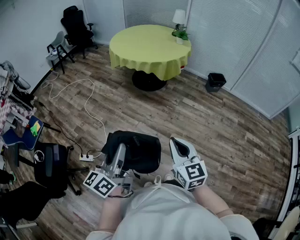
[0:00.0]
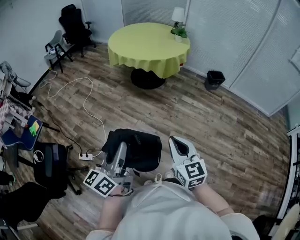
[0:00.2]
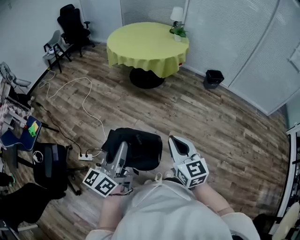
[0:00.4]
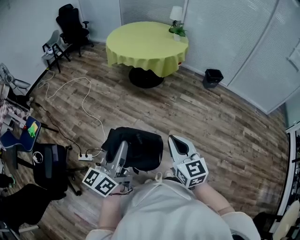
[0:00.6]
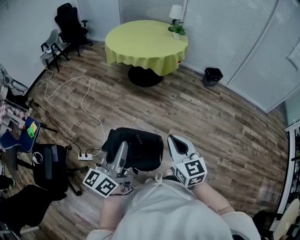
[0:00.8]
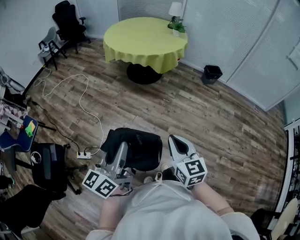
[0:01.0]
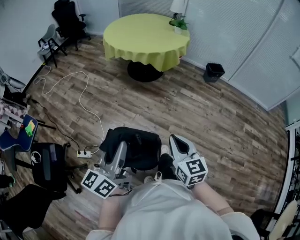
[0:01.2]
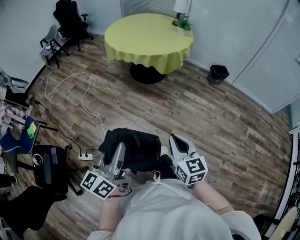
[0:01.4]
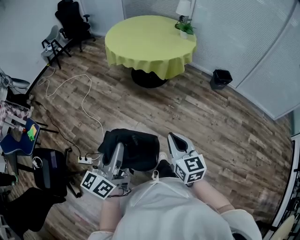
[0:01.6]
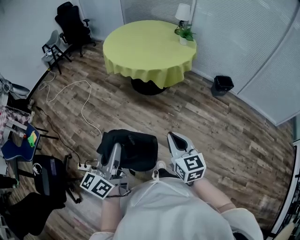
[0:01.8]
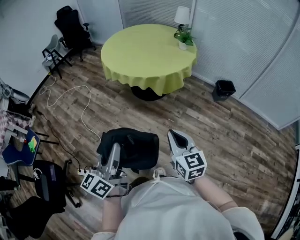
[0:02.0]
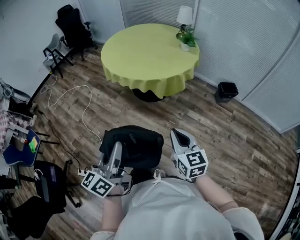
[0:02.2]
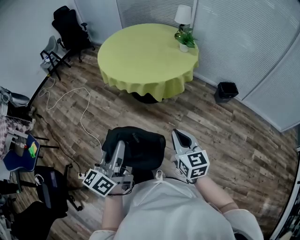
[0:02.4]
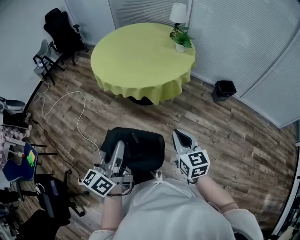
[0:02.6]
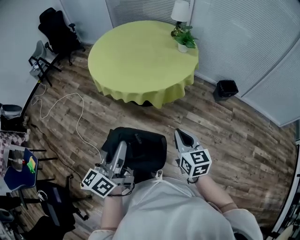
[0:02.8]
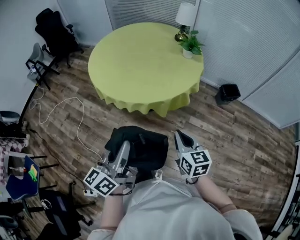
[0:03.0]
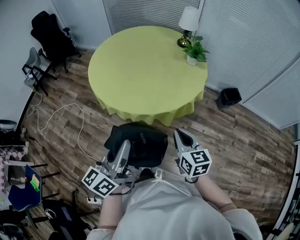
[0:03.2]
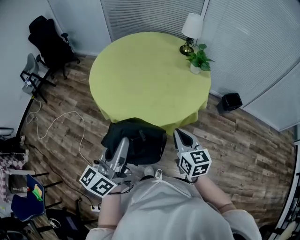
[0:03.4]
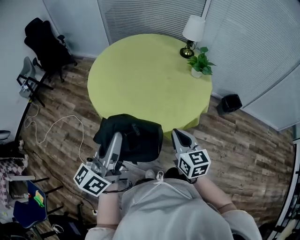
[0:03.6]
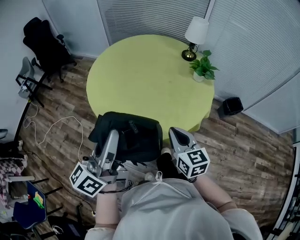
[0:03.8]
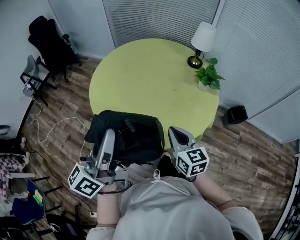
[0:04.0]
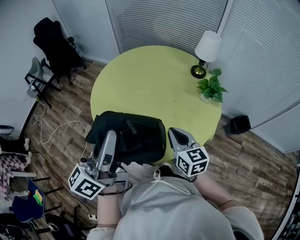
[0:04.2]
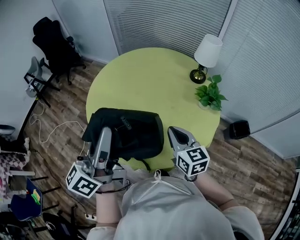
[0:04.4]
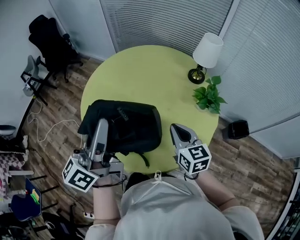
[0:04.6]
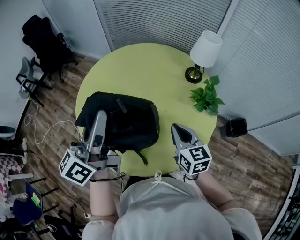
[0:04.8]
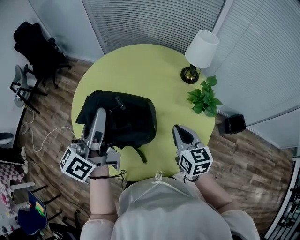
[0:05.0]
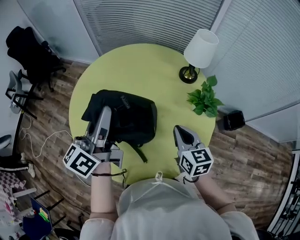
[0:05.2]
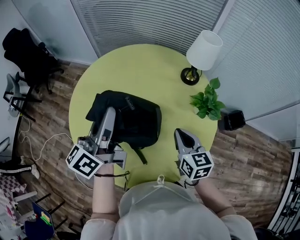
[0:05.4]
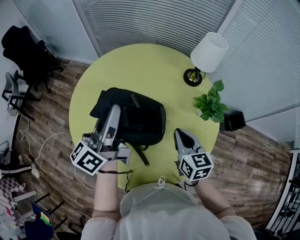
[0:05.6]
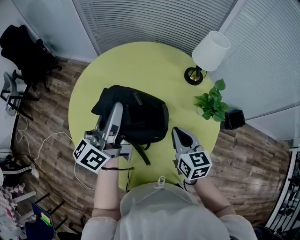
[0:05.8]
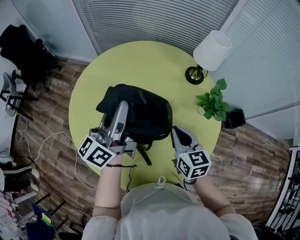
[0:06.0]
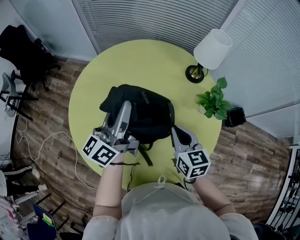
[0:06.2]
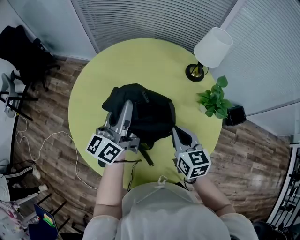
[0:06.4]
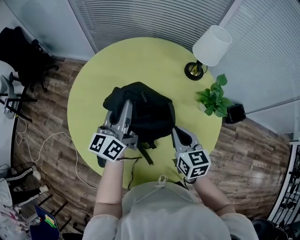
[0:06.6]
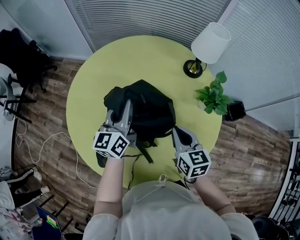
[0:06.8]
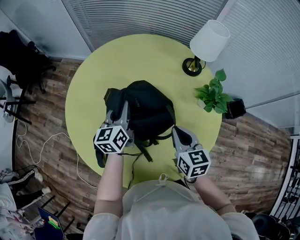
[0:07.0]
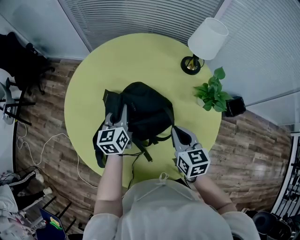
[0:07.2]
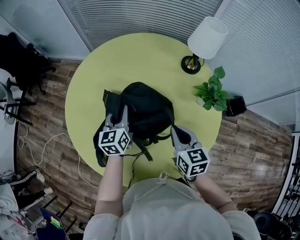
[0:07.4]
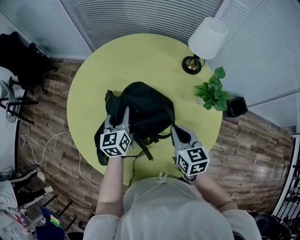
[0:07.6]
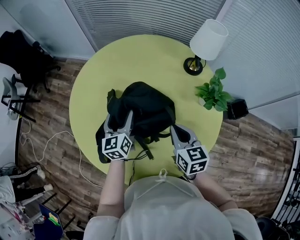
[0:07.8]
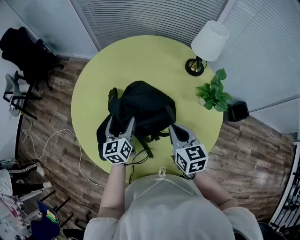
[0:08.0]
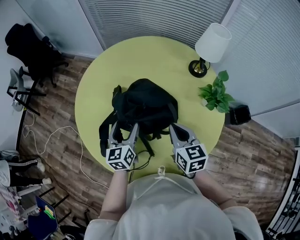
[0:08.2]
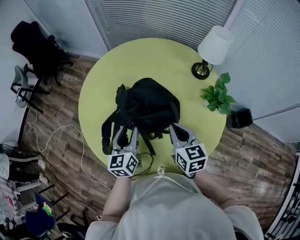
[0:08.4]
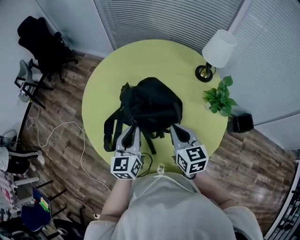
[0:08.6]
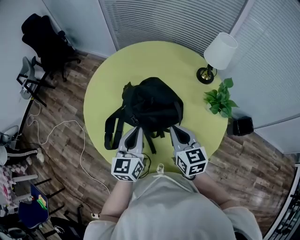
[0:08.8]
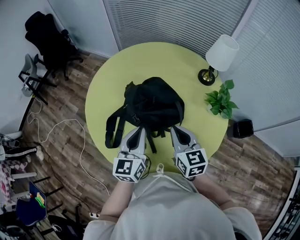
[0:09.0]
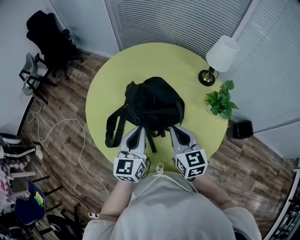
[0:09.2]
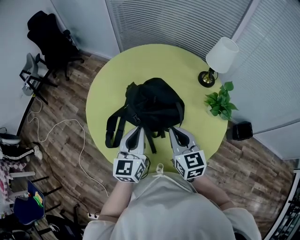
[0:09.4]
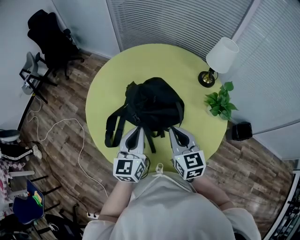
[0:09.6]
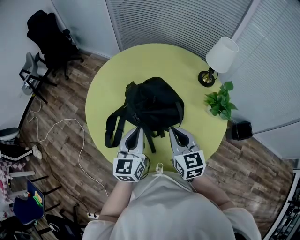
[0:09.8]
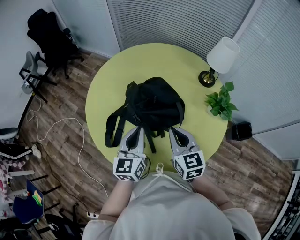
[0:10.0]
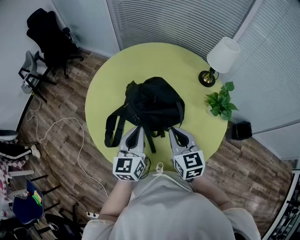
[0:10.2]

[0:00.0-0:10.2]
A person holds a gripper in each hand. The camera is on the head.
0:00.0 to 0:01.4: The left gripper is displaced forward by roughly 10 cm. The right gripper moves forward and downward, approximately 10 cm.
0:01.4 to 0:03.0: The two grippers travel together, forward, roughly 50 cm.
0:03.0 to 0:04.4: Both grippers are carried forward, about 40 cm.
0:04.4 to 0:05.8: The left gripper is displaced forward by approximately 30 cm, while the right gripper shifts about 15 cm forward.
0:05.8 to 0:07.2: The left gripper is displaced downward by roughly 20 cm, and tips its fingers downward by about 30 degrees.
0:07.2 to 0:08.8: The right gripper goes approximately 5 cm backward, while the left gripper is displaced backward and upward by roughly 20 cm, and opens, then closes again.
0:08.8 to 0:10.2: The grippers stay close to where they were, moving slightly.

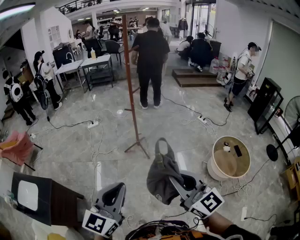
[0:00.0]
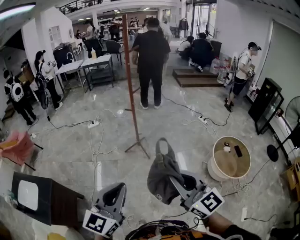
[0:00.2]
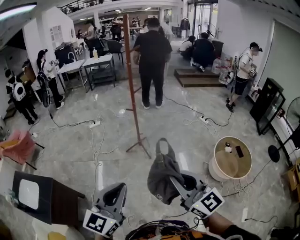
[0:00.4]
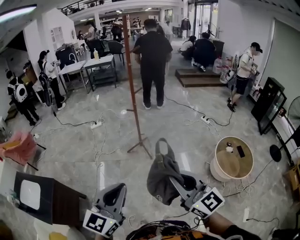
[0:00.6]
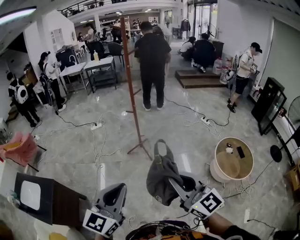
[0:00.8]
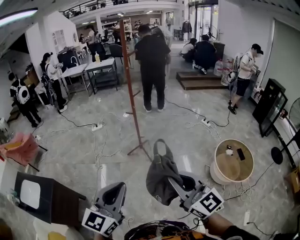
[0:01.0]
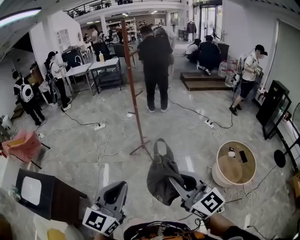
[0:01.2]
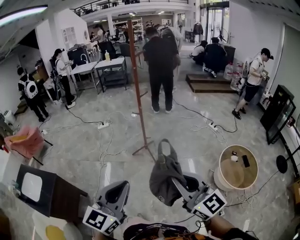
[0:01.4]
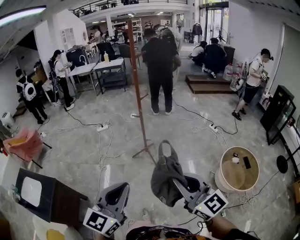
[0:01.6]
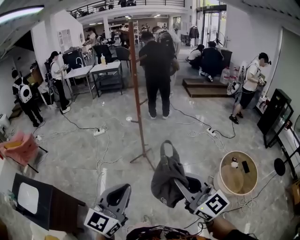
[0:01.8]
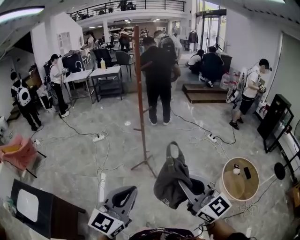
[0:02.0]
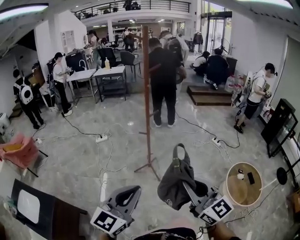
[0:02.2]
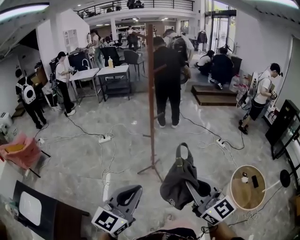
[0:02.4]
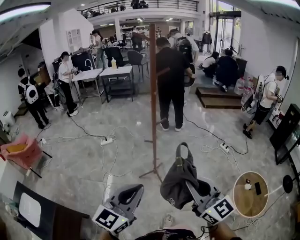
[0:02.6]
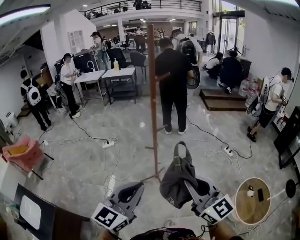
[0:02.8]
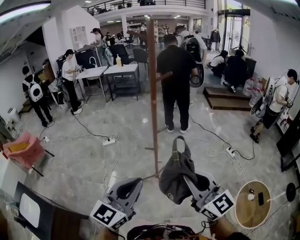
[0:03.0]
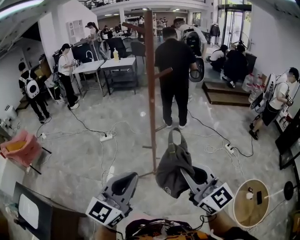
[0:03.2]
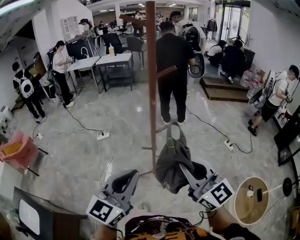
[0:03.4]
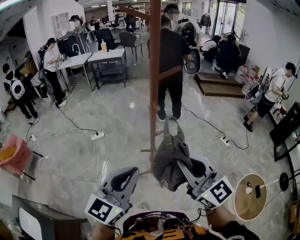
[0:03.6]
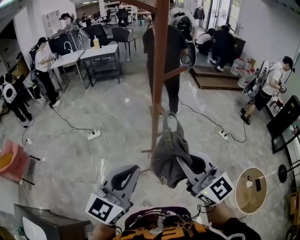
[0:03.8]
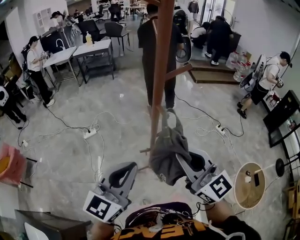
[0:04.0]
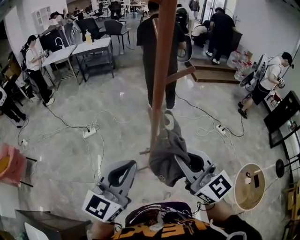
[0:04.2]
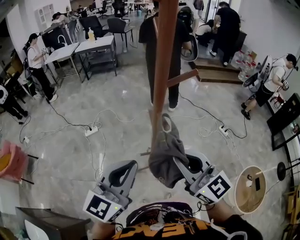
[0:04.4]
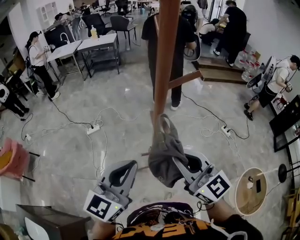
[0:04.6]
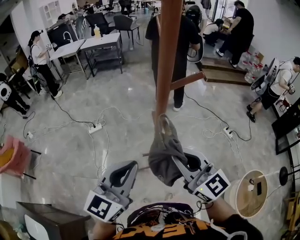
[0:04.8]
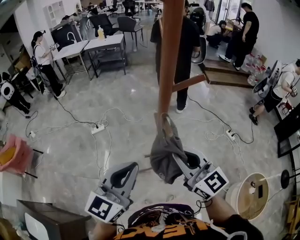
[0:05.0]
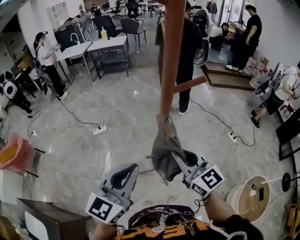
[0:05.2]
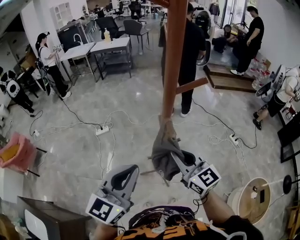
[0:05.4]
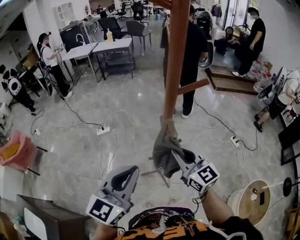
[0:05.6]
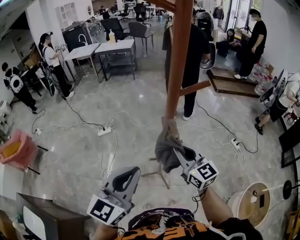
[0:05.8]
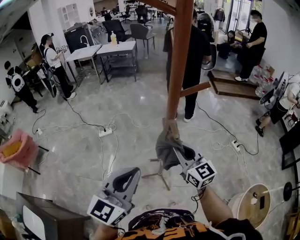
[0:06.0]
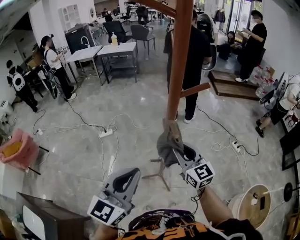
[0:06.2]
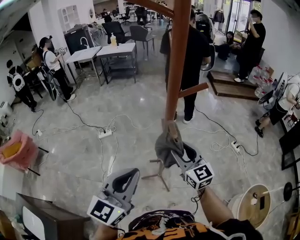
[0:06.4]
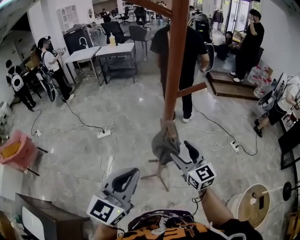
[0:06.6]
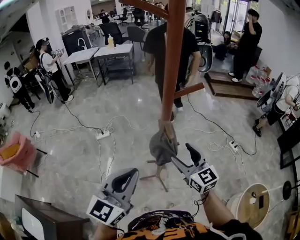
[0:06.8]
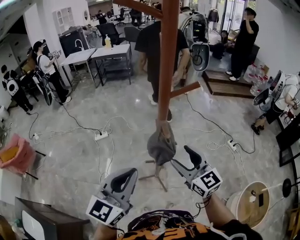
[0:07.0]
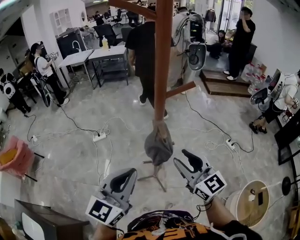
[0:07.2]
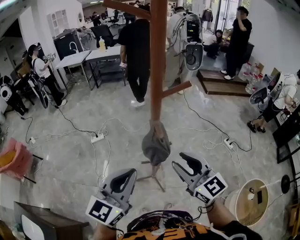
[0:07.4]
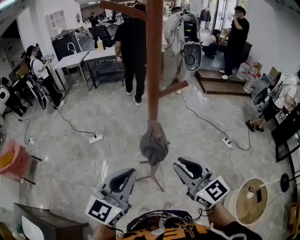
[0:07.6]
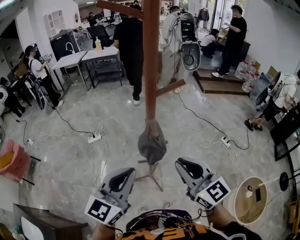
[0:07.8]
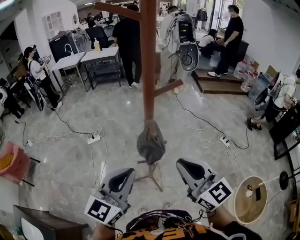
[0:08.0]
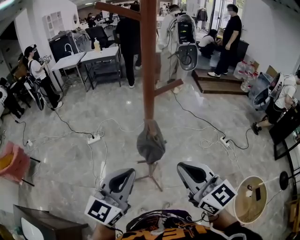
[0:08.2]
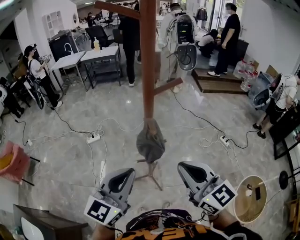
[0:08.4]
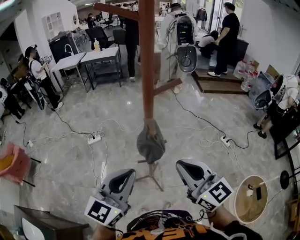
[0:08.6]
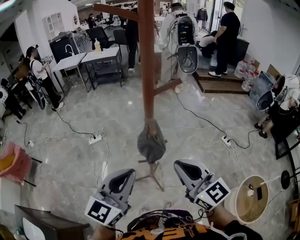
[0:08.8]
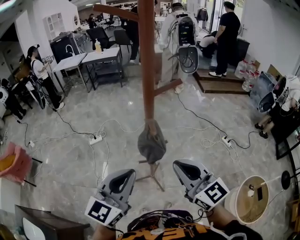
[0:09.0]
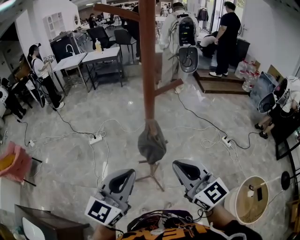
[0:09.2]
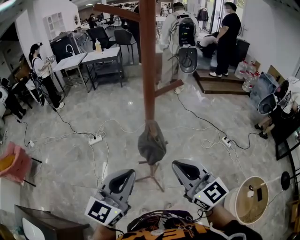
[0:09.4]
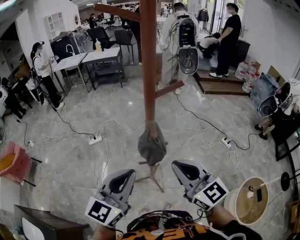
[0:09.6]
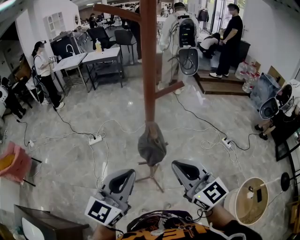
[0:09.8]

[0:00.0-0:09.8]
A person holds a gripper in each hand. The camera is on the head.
0:00.0 to 0:01.4: The grippers both shift to the right by approximately 5 cm.
0:01.4 to 0:02.8: The grippers both shift forward by some 35 cm.
0:02.8 to 0:04.2: Both grippers move forward, approximately 35 cm.
0:04.2 to 0:05.6: The right gripper travels forward and downward by approximately 15 cm.
0:05.6 to 0:07.0: The right gripper opens.
0:07.0 to 0:08.4: The right gripper travels upward and backward by some 15 cm, and closes its fingers.
0:08.4 to 0:09.8: The grippers make only small movements.

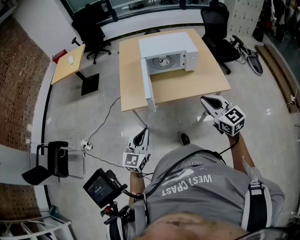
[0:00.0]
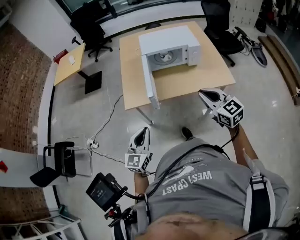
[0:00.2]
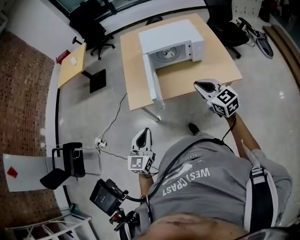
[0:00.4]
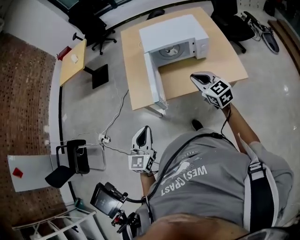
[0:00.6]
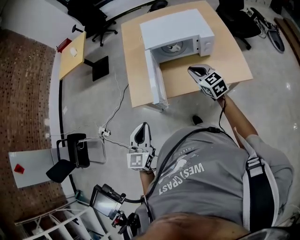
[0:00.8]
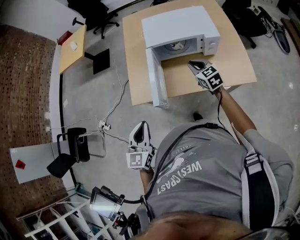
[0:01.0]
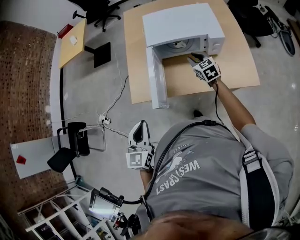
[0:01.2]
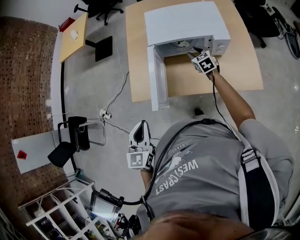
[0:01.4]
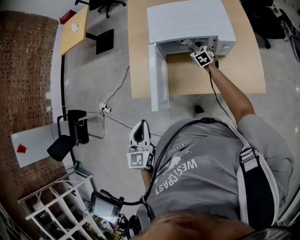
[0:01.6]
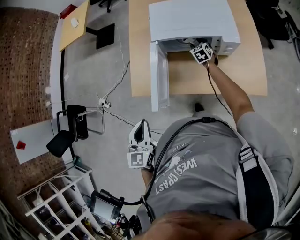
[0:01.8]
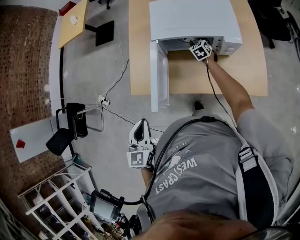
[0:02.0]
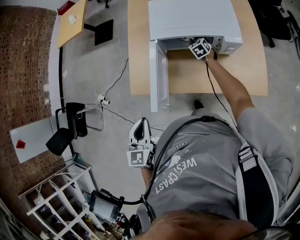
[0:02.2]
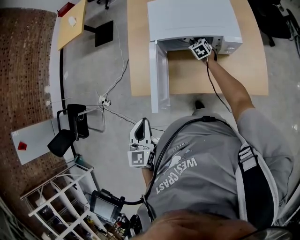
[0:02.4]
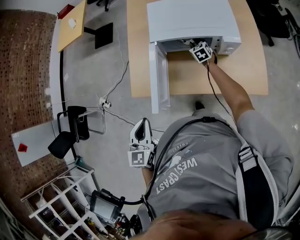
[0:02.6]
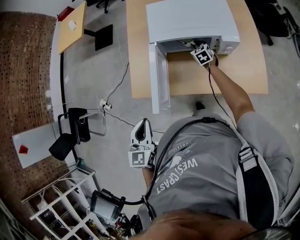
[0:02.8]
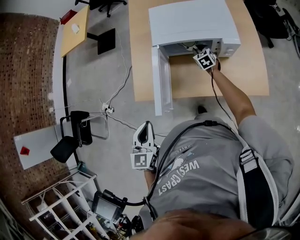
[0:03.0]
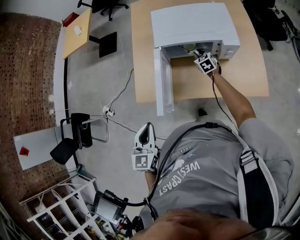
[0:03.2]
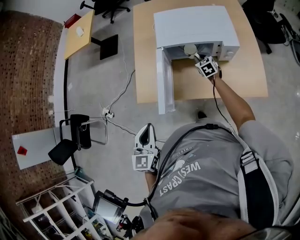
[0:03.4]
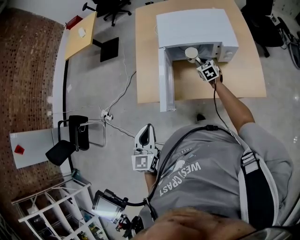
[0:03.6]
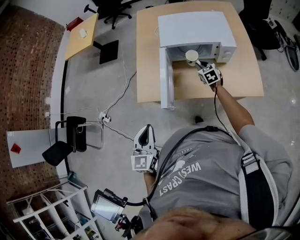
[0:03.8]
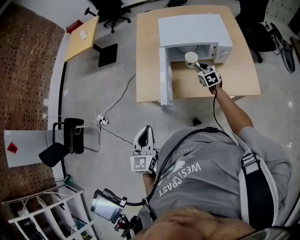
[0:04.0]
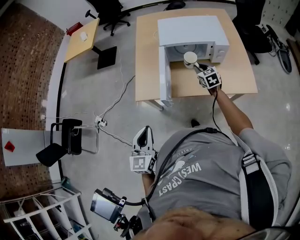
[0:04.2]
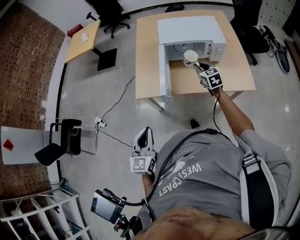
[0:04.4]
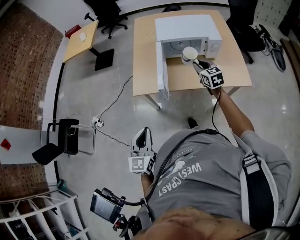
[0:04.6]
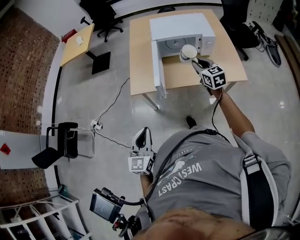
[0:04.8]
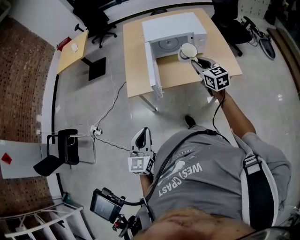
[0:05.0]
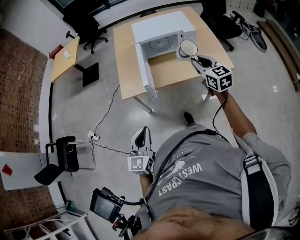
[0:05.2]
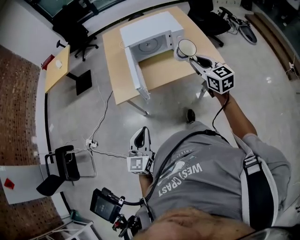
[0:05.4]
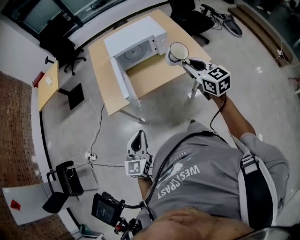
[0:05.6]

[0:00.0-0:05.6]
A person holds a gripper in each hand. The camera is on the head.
0:00.0 to 0:01.4: The right gripper heads forward and downward, covering roughly 60 cm, swivels some 20 degrees, and opens, while the left gripper shifts approximately 25 cm forward, and turns by some 20 degrees.
0:01.4 to 0:02.8: The right gripper is displaced downward and forward by roughly 10 cm.
0:02.8 to 0:04.2: The left gripper shifts approximately 20 cm backward and to the left. The right gripper moves backward and upward, some 25 cm.
0:04.2 to 0:05.6: The right gripper shifts about 35 cm backward and upward, and changes its angle by about 20 degrees. The left gripper is displaced backward and to the right by roughly 15 cm, and changes its angle by roughly 20 degrees.
